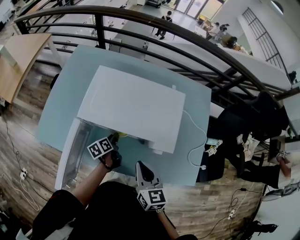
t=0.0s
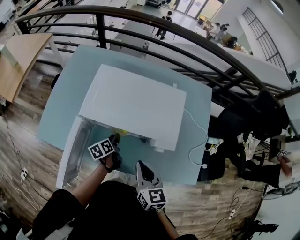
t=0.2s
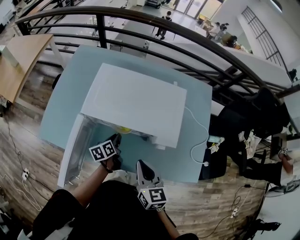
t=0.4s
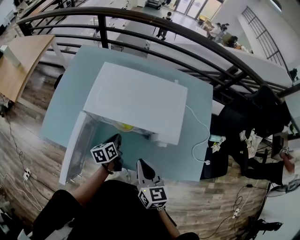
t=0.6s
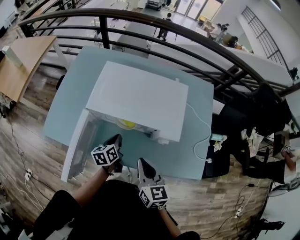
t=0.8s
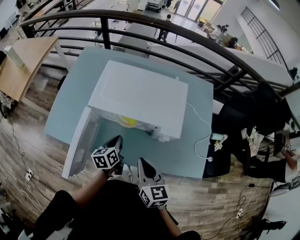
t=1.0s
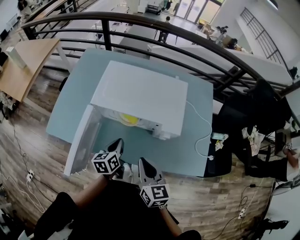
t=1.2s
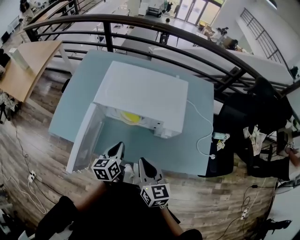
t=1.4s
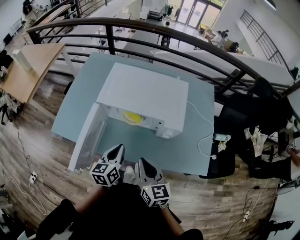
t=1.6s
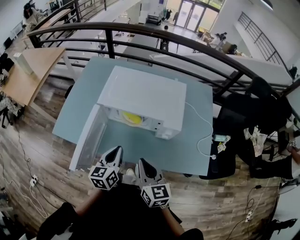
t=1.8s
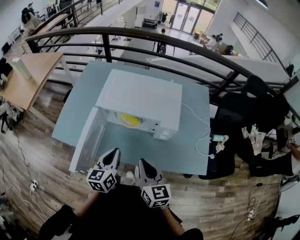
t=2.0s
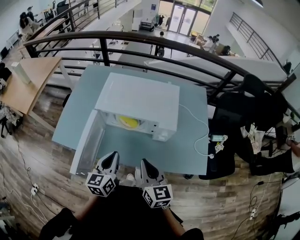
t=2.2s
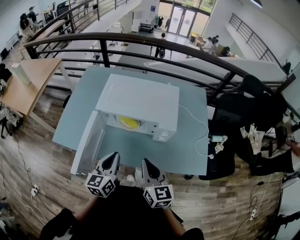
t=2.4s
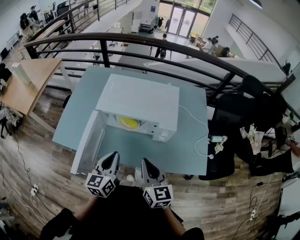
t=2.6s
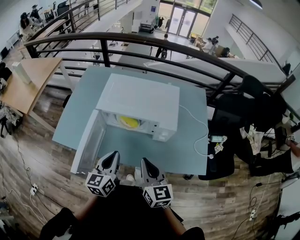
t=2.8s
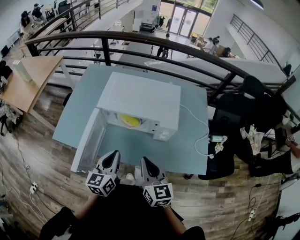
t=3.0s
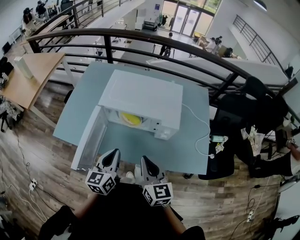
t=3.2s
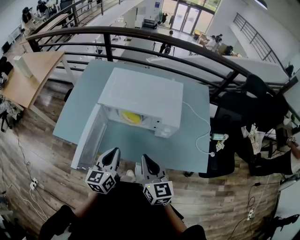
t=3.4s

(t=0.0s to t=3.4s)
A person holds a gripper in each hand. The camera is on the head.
t=0.0s - t=1.6s: The right gripper changes place by approximately 10 cm.

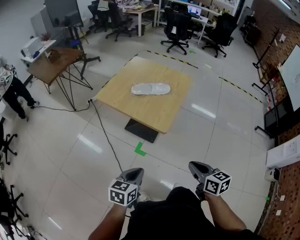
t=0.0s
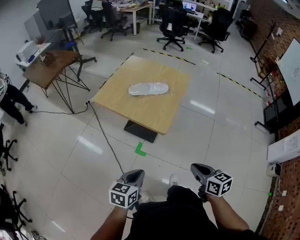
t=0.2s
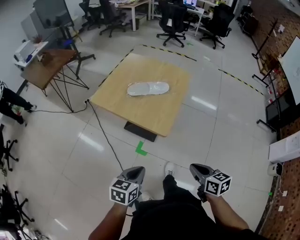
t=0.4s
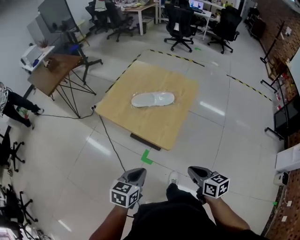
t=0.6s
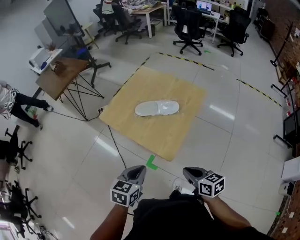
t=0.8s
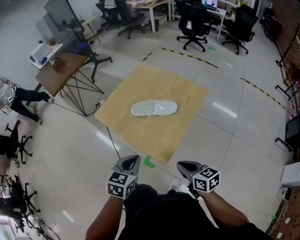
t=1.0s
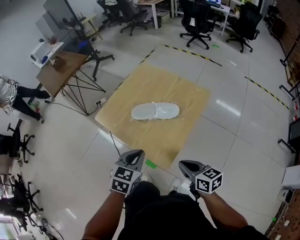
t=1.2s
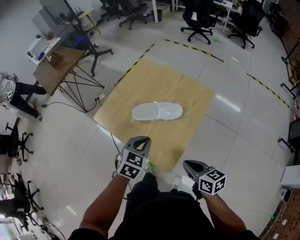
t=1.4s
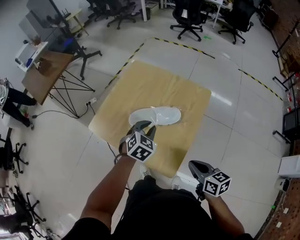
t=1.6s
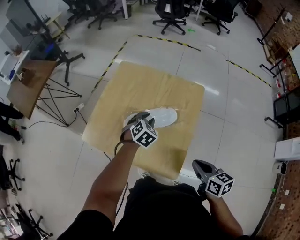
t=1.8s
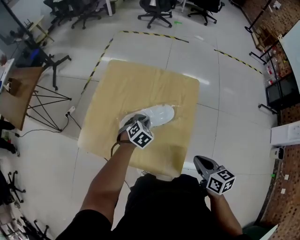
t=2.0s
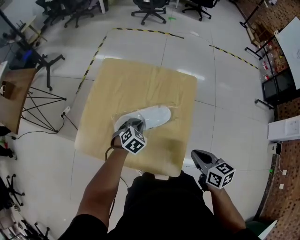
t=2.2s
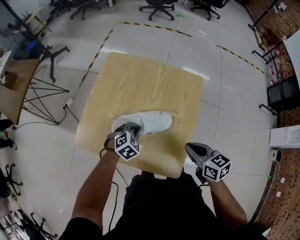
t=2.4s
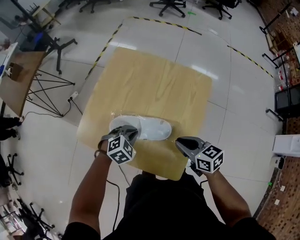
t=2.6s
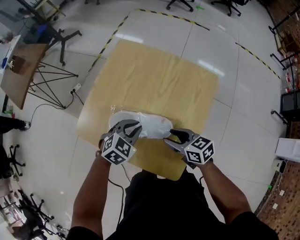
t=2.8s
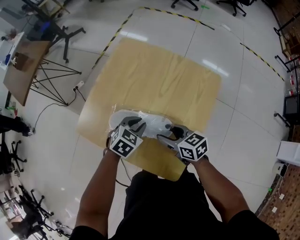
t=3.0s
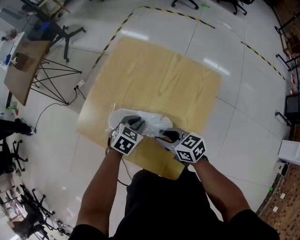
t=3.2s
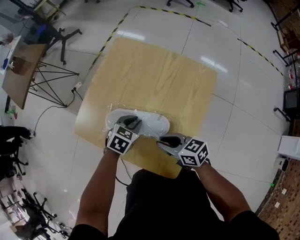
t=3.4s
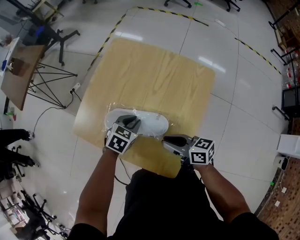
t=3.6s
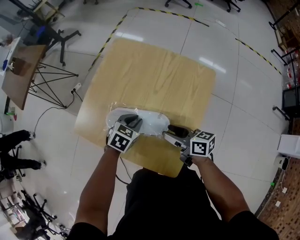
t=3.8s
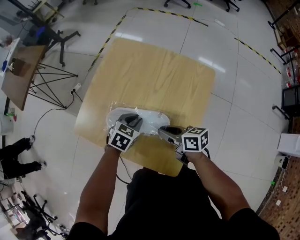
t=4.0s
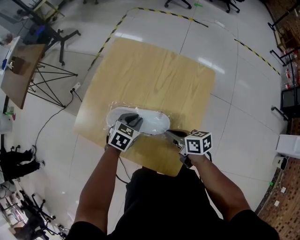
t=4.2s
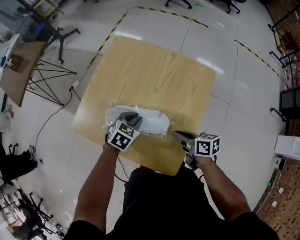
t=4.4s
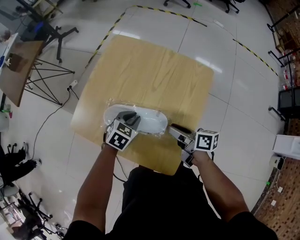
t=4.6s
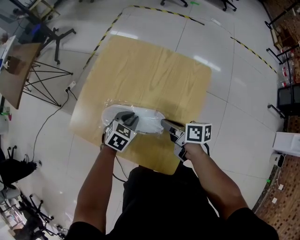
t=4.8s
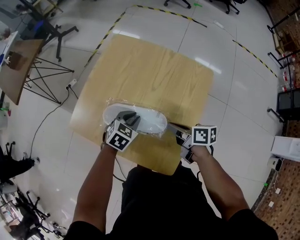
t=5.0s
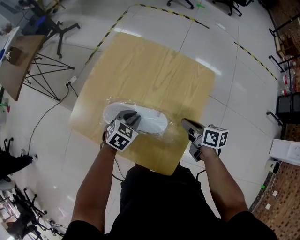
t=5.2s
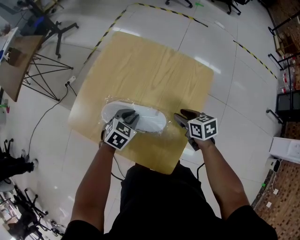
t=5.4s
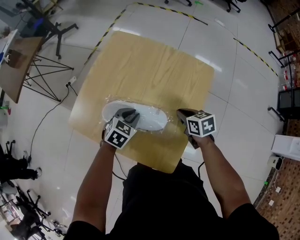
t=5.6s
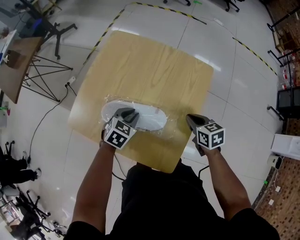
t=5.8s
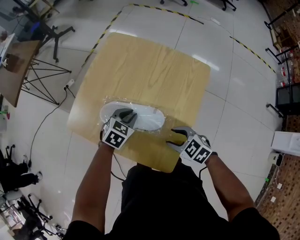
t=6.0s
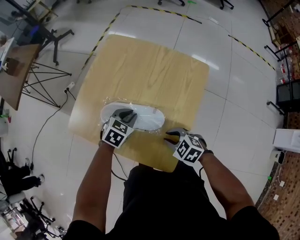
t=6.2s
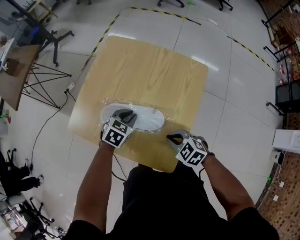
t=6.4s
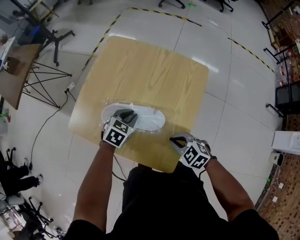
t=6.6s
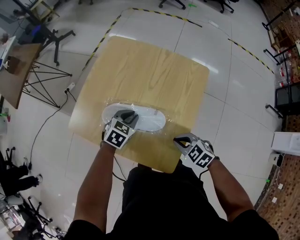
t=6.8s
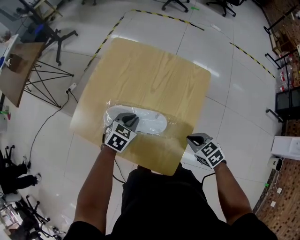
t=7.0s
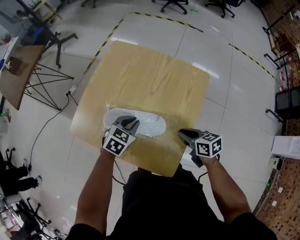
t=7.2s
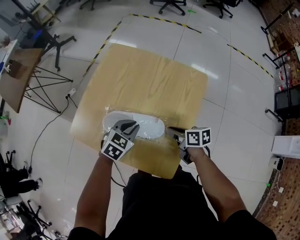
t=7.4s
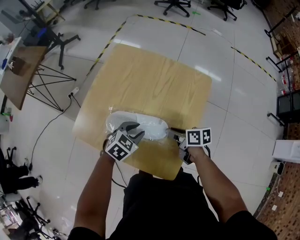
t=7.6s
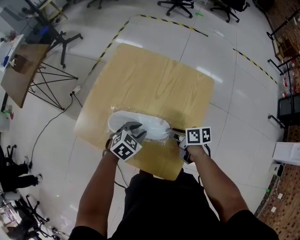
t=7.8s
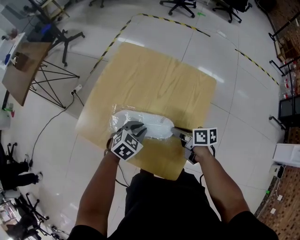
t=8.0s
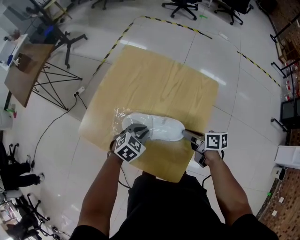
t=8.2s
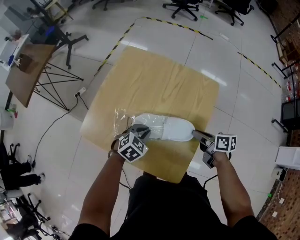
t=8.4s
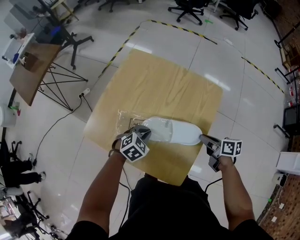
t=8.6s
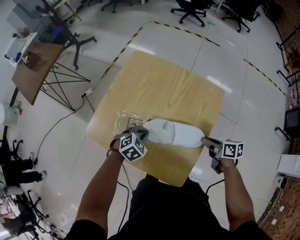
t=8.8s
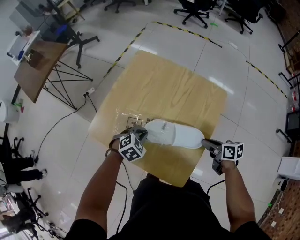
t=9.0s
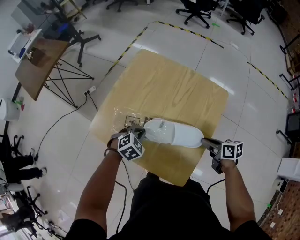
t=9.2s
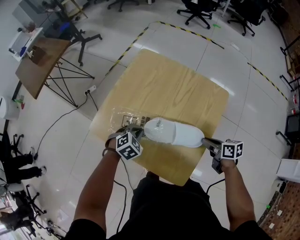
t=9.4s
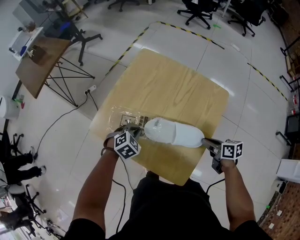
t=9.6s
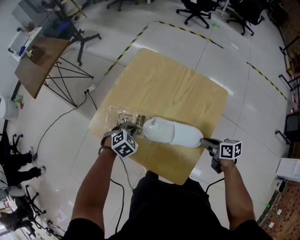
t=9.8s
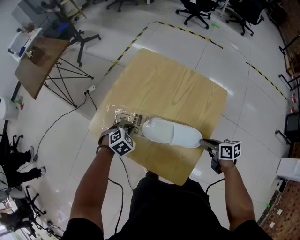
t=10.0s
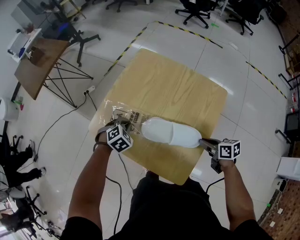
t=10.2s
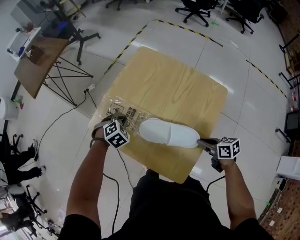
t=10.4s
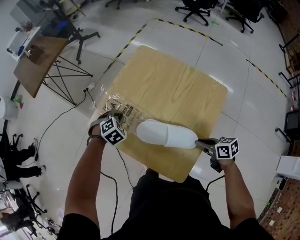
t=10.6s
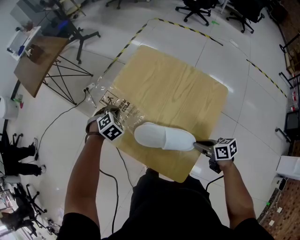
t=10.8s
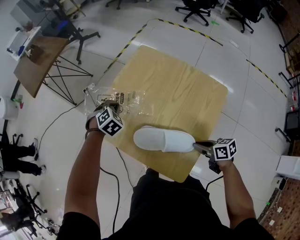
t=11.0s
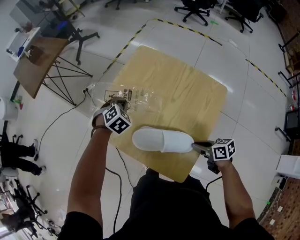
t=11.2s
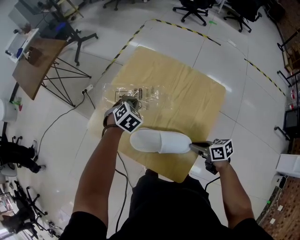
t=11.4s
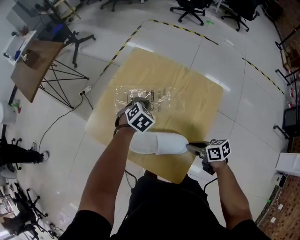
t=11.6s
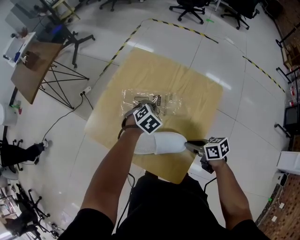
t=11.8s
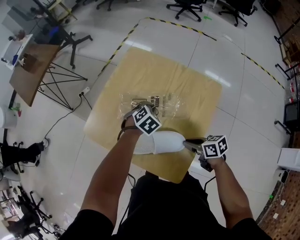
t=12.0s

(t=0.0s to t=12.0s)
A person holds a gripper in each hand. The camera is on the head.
t=0.0s - t=1.6s: The right gripper goes some 30 cm forward, while the left gripper moves forward, approximately 50 cm, and changes its angle by about 40 degrees.
t=1.6s - t=3.0s: The right gripper shifts roughly 20 cm forward, to the left and downward, and opens its fingers, while the left gripper travels downward by about 10 cm.
t=3.0s - t=4.4s: The right gripper travels to the right by approximately 5 cm, swivels roughly 30 degrees, and closes.
t=4.4s - t=6.0s: The right gripper reaches roughly 10 cm forward, then returns, rolls counterclockwise, seen from behind, by approximately 50 degrees, and opens.
t=6.0s - t=7.6s: The right gripper is displaced forward by about 5 cm, moves approximately 10 cm to the right and comes back, twists approximately 60 degrees clockwise, seen from behind, and closes up.
t=7.6s - t=9.0s: The right gripper travels to the right by roughly 10 cm. Meanwhile the left gripper goes about 5 cm to the left, and closes its fingers.
t=9.0s - t=10.4s: The left gripper is displaced to the left and forward by roughly 10 cm.
t=10.4s - t=12.0s: The left gripper travels to the right by approximately 20 cm.

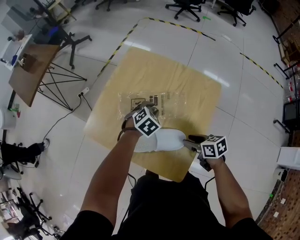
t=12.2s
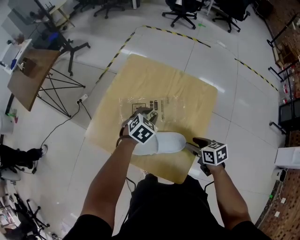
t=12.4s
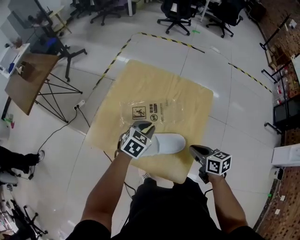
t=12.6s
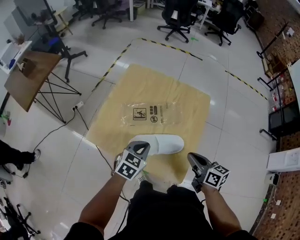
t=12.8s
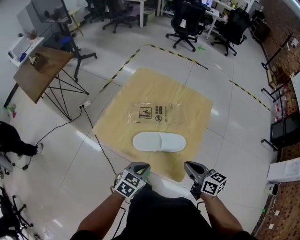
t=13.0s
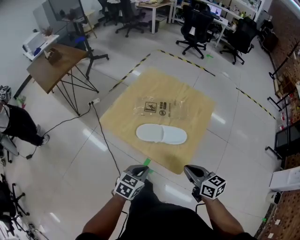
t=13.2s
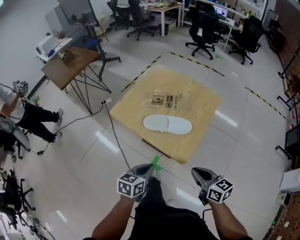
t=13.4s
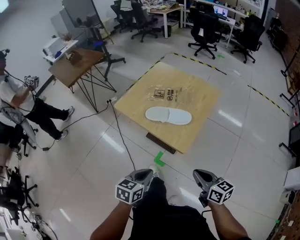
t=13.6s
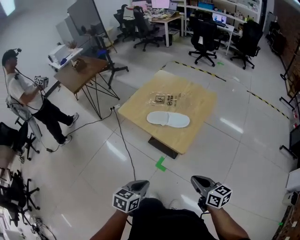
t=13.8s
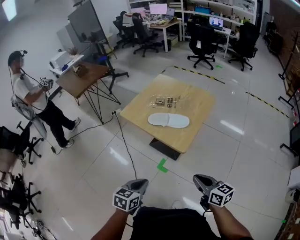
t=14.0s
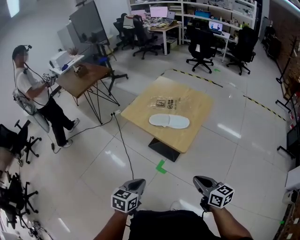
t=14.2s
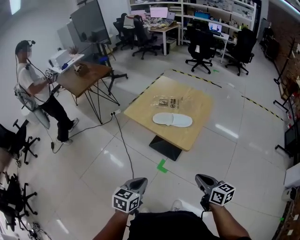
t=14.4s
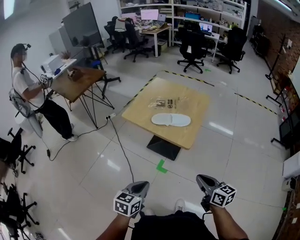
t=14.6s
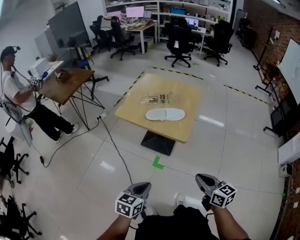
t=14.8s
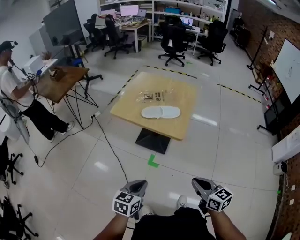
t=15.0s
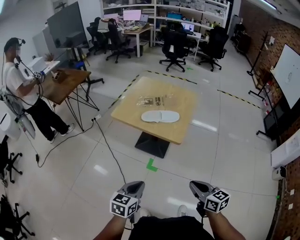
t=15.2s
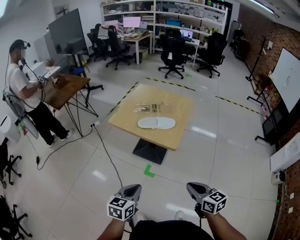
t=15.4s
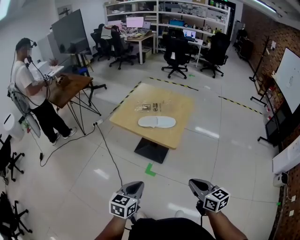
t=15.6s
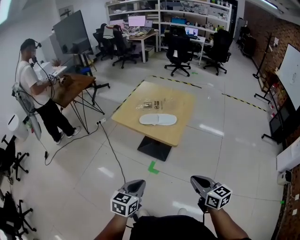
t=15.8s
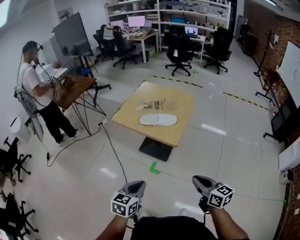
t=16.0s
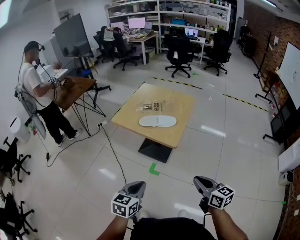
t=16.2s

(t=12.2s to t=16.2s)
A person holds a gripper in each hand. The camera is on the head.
t=12.2s - t=13.6s: The right gripper heads backward and upward, covering roughly 35 cm, rotates roughly 30 degrees, and closes its fingers; the left gripper moves backward, roughly 50 cm, rotates around the line of its fingers by roughly 40 degrees, counterclockwise from behind, and closes.
t=13.6s - t=14.8s: The right gripper shifts about 15 cm backward, to the left and upward. The left gripper heads backward and to the left, covering approximately 15 cm.
t=14.8s - t=16.2s: The left gripper changes place by some 5 cm. Meanwhile the right gripper shifts roughly 5 cm to the right.

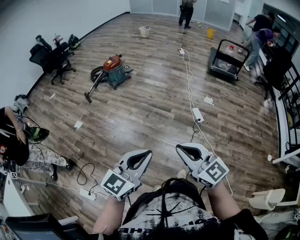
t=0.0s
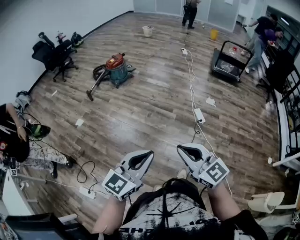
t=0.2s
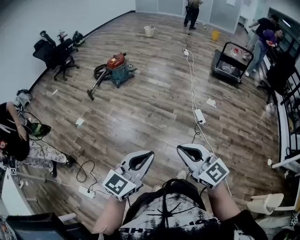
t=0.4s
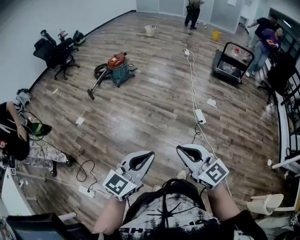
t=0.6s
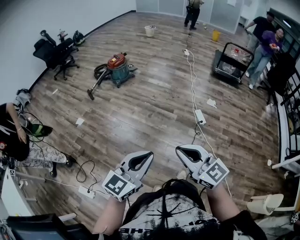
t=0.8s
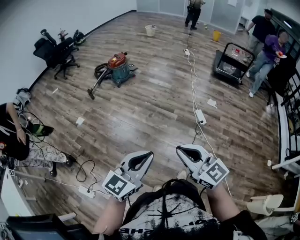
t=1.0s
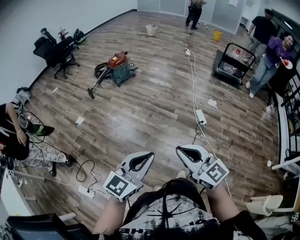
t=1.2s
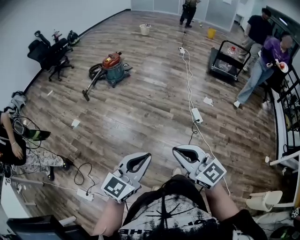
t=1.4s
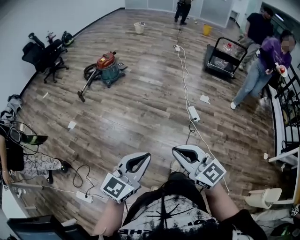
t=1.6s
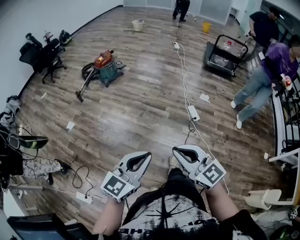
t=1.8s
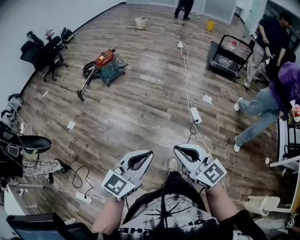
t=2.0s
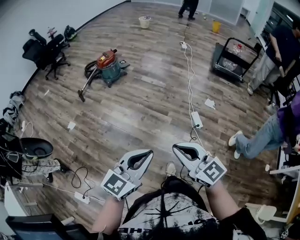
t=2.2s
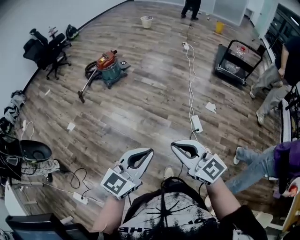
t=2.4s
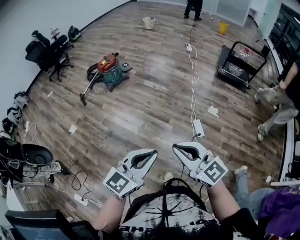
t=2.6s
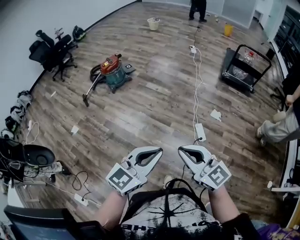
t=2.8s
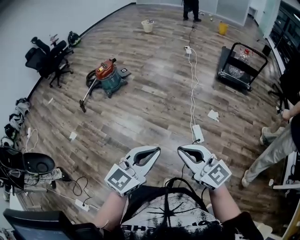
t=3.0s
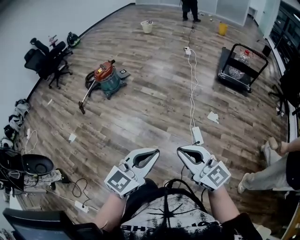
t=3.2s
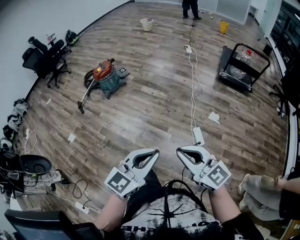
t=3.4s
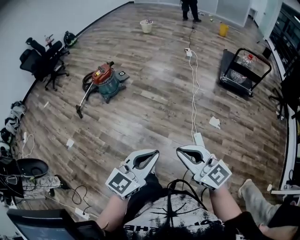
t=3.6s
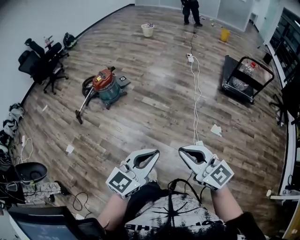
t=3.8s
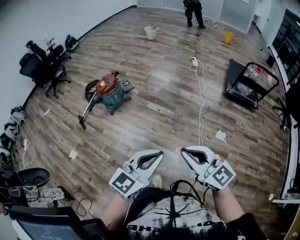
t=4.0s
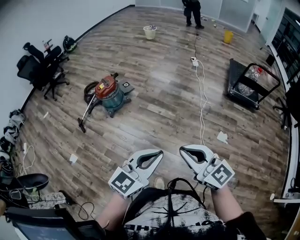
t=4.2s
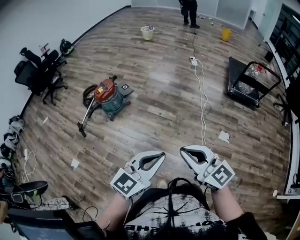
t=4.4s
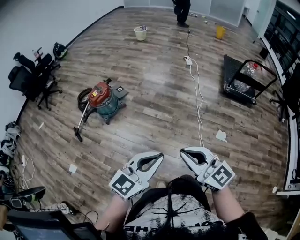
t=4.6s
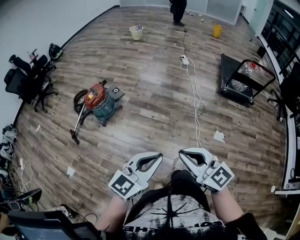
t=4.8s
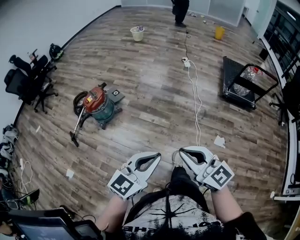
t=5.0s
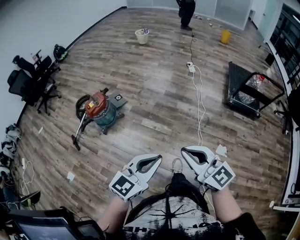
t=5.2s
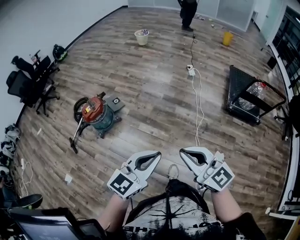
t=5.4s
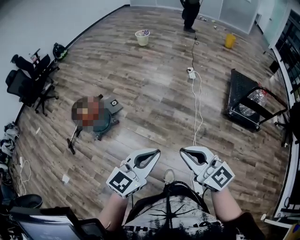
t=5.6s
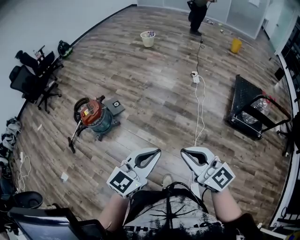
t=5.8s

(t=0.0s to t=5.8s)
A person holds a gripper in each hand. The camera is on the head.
t=0.0s - t=1.4s: There are only small adjustments of the grippers.
t=1.4s - t=2.8s: The grippers both shift forward and to the right by about 40 cm.
t=2.8s - t=4.4s: The grippers both shift forward by roughly 35 cm.
t=4.4s - t=5.8s: The pair of grippers is taken forward and to the right, some 40 cm.
